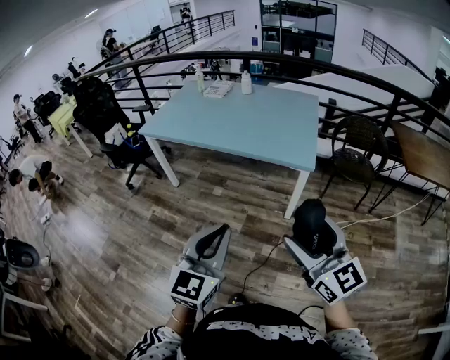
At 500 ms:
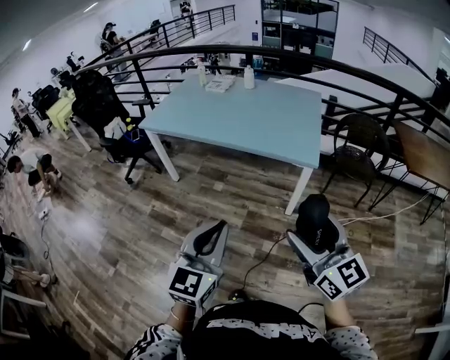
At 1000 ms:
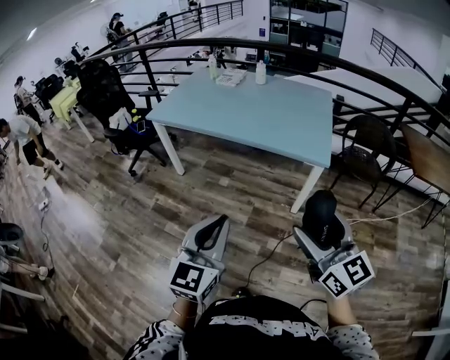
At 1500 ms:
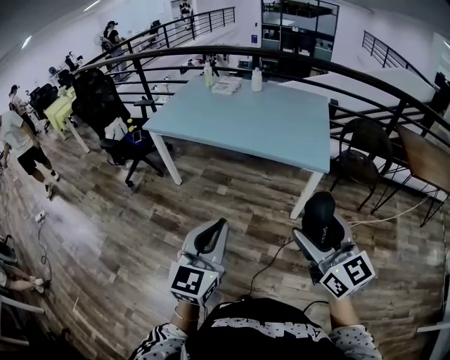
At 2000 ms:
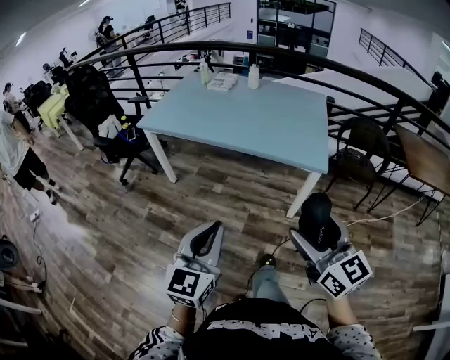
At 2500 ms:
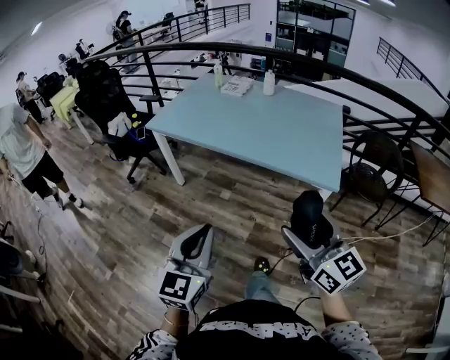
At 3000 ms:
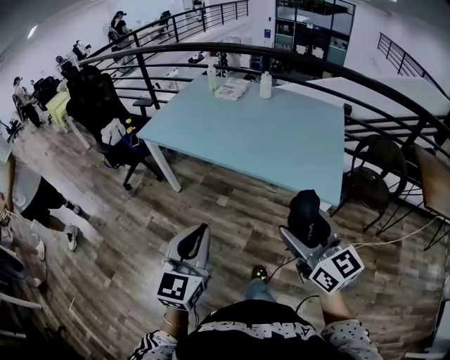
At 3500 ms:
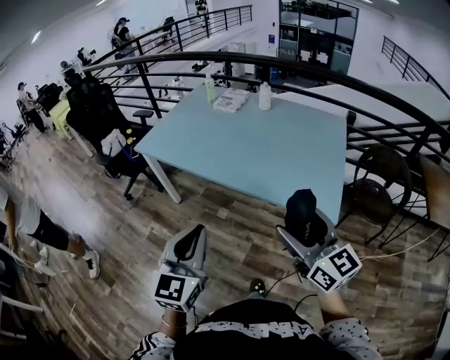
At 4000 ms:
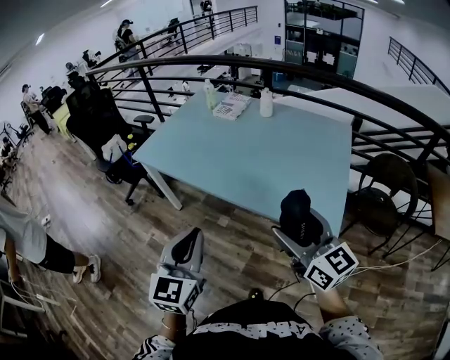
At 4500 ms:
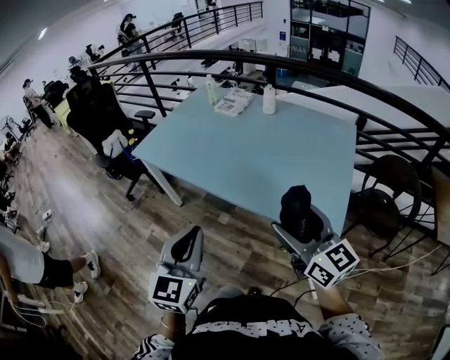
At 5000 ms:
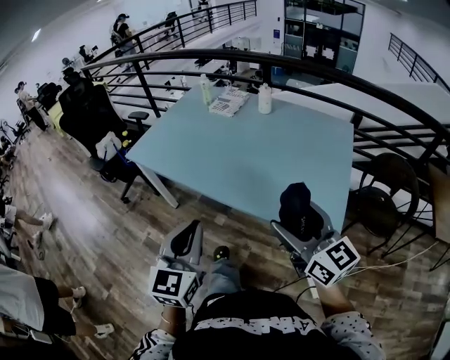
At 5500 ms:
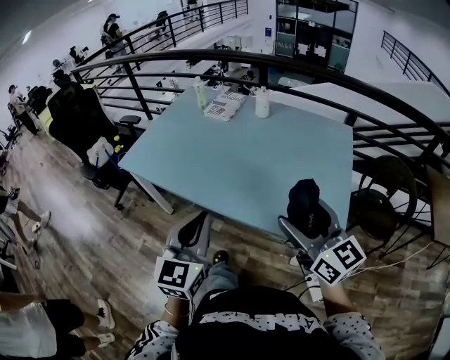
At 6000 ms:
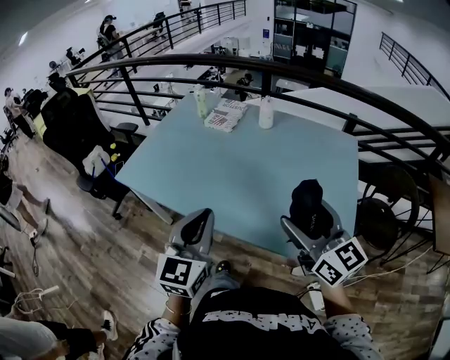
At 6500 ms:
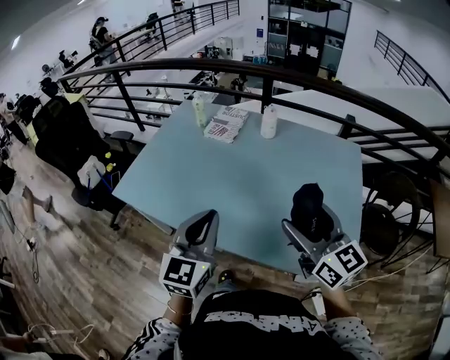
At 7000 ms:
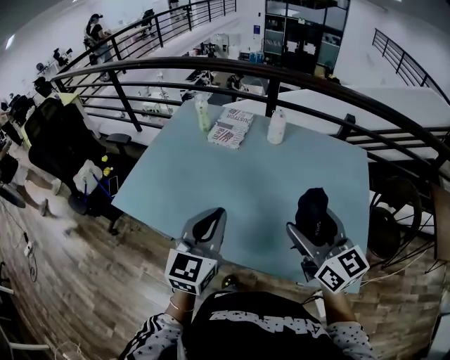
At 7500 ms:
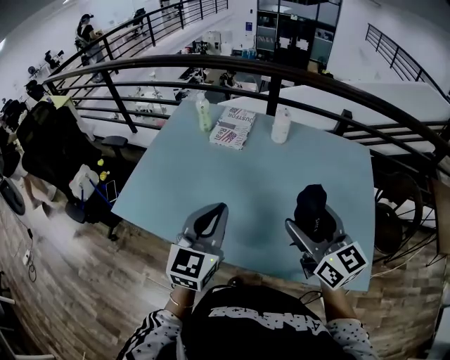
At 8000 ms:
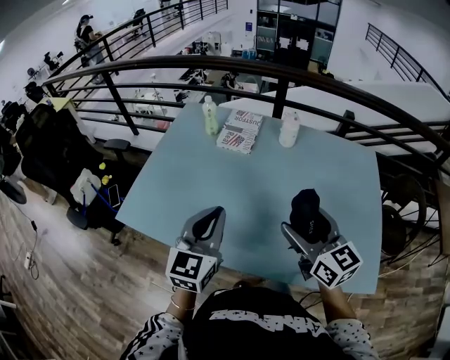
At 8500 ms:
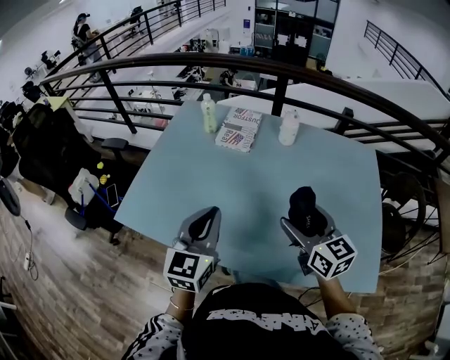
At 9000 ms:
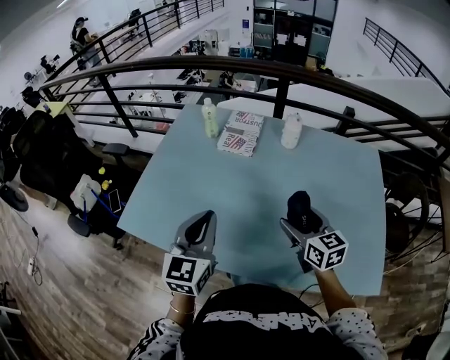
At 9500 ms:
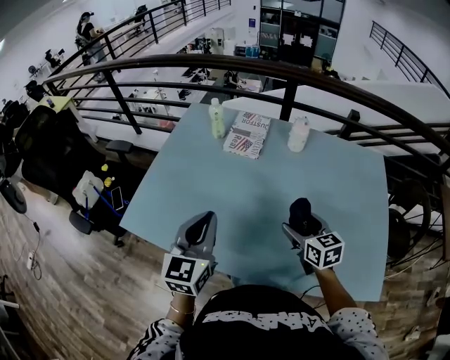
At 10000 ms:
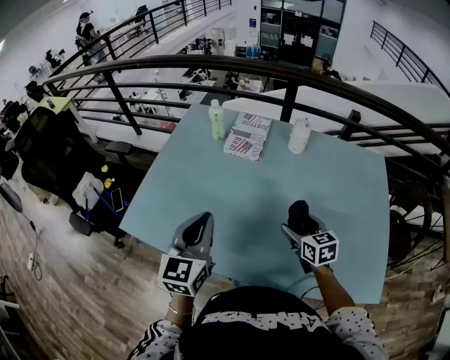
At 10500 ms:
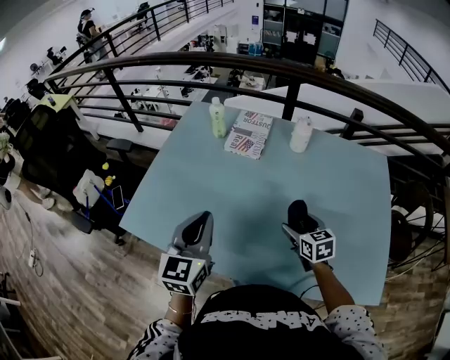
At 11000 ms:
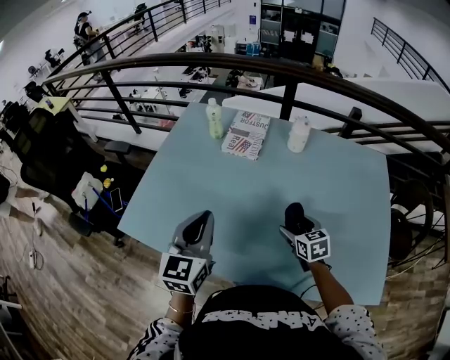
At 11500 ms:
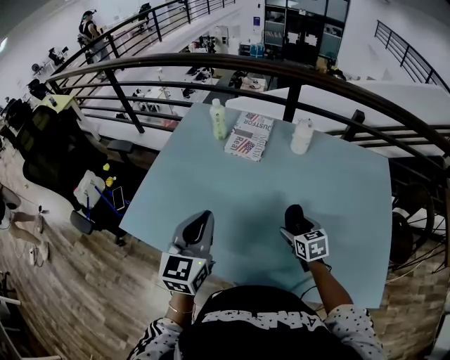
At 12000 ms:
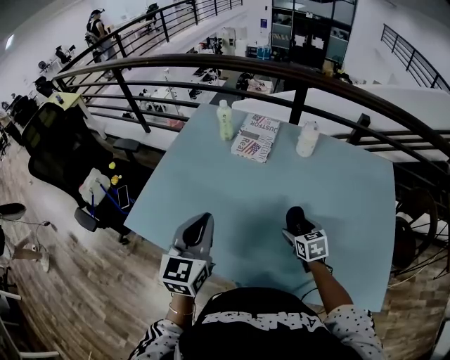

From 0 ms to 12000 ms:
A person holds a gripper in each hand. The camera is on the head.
From 0 ms to 2000 ms: The two grippers go roughly 15 cm to the left and forward.
From 2000 ms to 4000 ms: Both grippers travel together forward, roughly 35 cm.
From 4000 ms to 6000 ms: Both grippers move forward, approximately 25 cm.
From 6000 ms to 8000 ms: The two grippers go roughly 30 cm forward and to the left.
From 8000 ms to 10000 ms: The right gripper goes roughly 20 cm downward and forward, and turns by some 30 degrees. Meanwhile the left gripper goes approximately 10 cm to the left and forward.
From 10000 ms to 12000 ms: The right gripper heads downward, covering approximately 10 cm.

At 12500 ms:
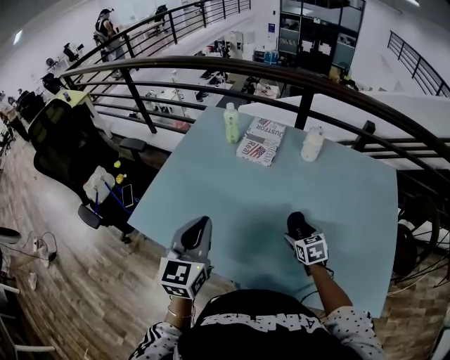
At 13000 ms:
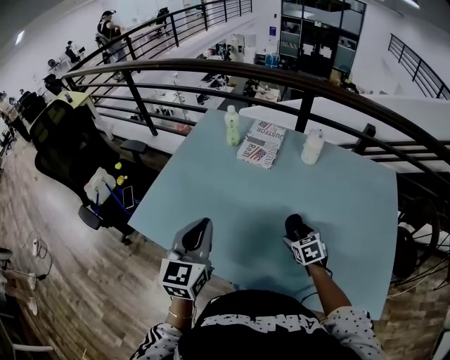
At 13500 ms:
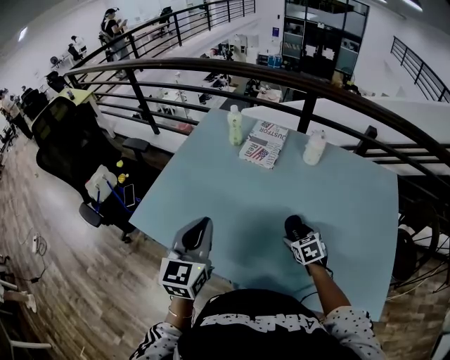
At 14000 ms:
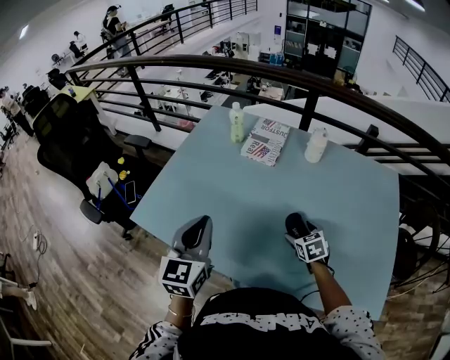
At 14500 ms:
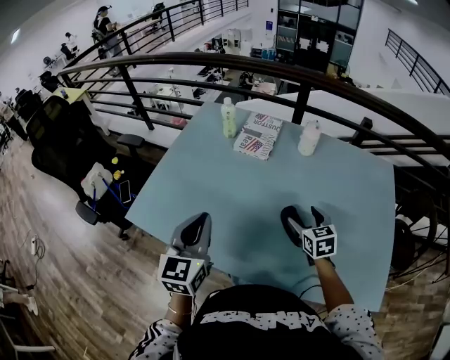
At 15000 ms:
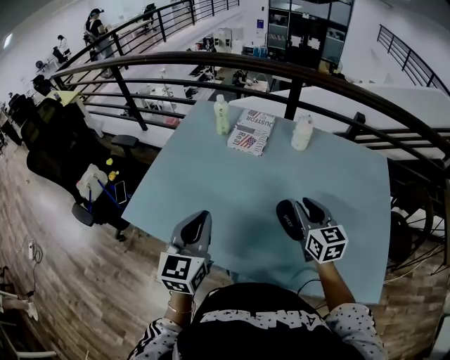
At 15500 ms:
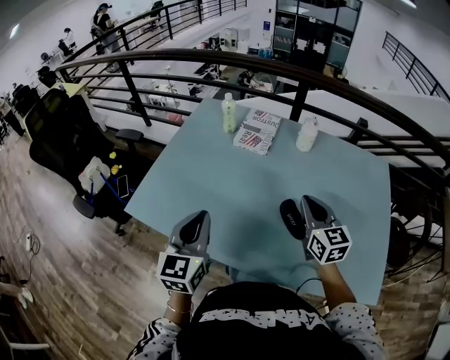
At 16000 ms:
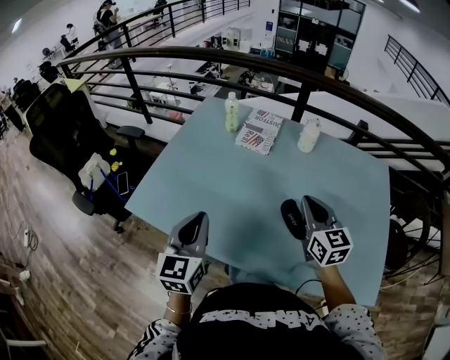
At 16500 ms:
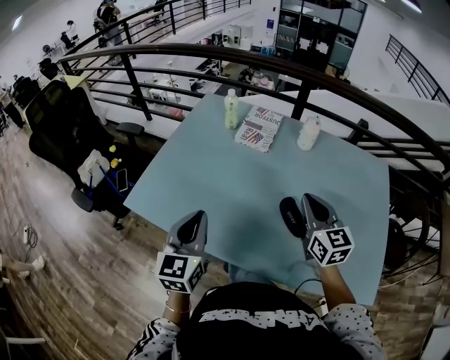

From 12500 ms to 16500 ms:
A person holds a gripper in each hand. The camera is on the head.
From 12500 ms to 14500 ms: The right gripper heads upward, covering roughly 10 cm.
From 14500 ms to 16500 ms: The right gripper heads upward, covering roughly 15 cm, changes its angle by approximately 20 degrees, and closes up.

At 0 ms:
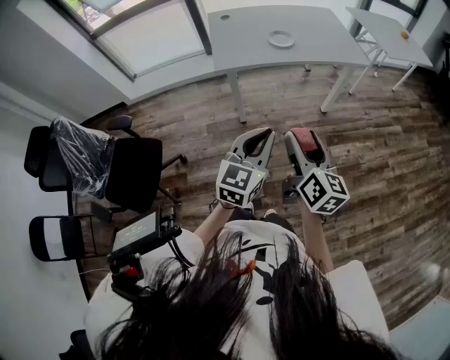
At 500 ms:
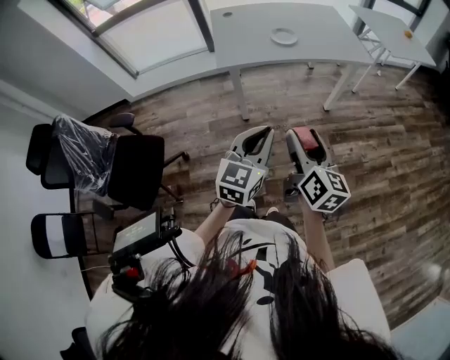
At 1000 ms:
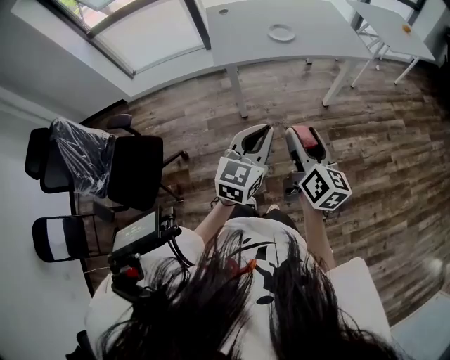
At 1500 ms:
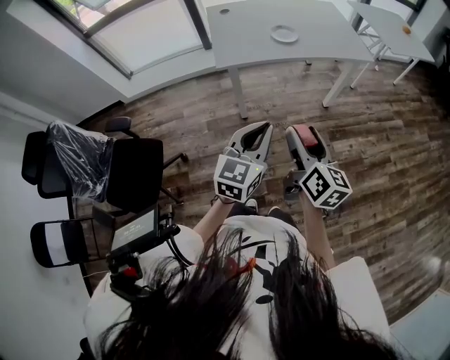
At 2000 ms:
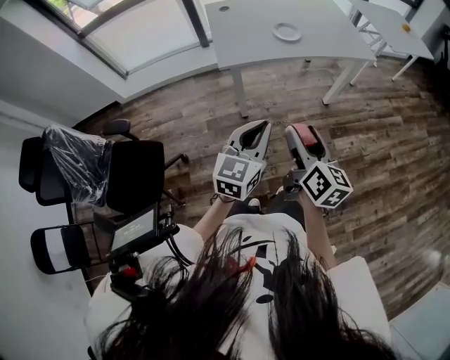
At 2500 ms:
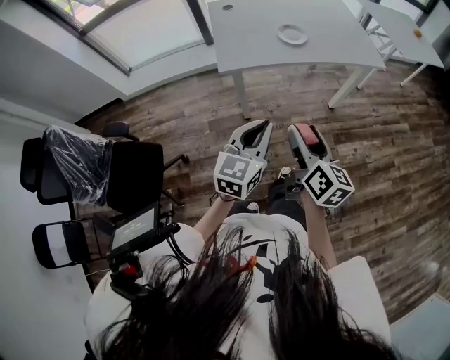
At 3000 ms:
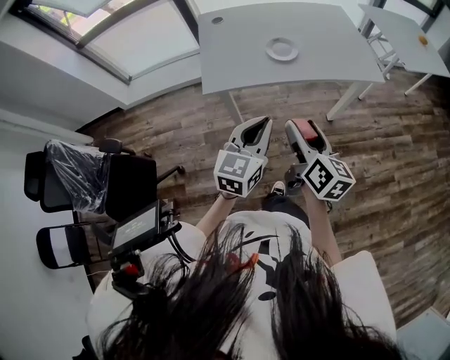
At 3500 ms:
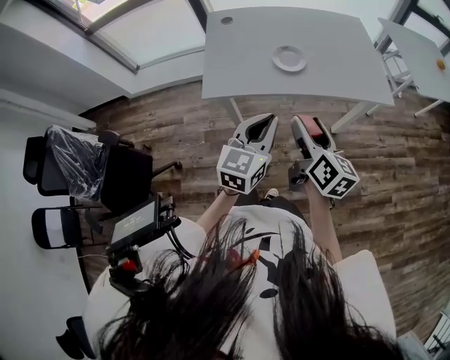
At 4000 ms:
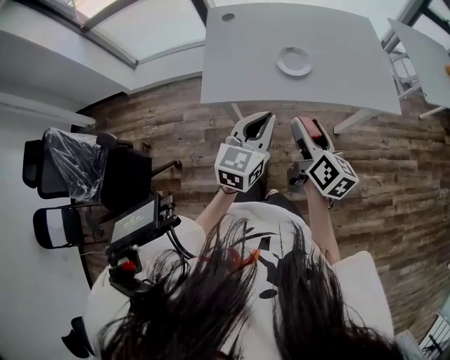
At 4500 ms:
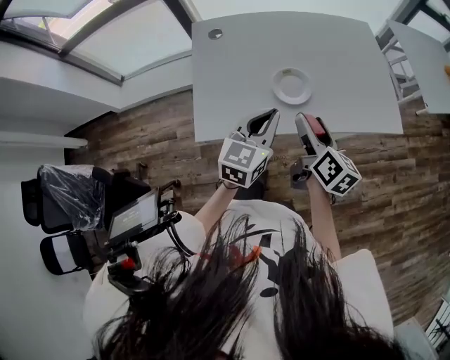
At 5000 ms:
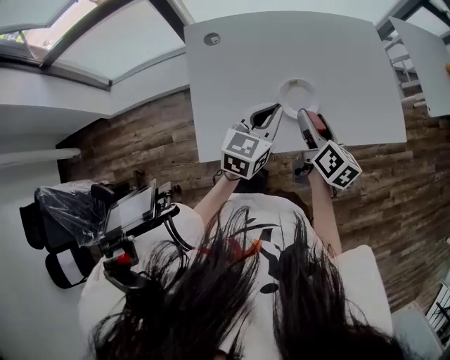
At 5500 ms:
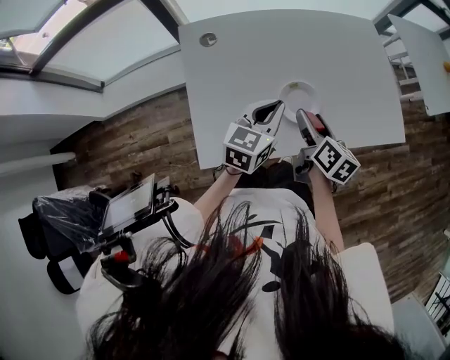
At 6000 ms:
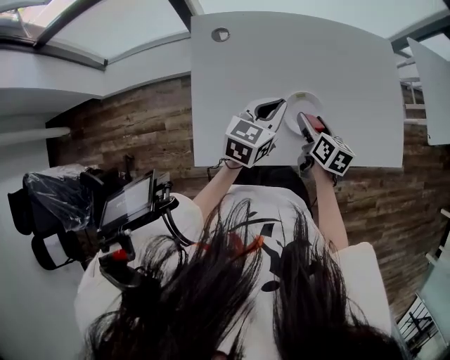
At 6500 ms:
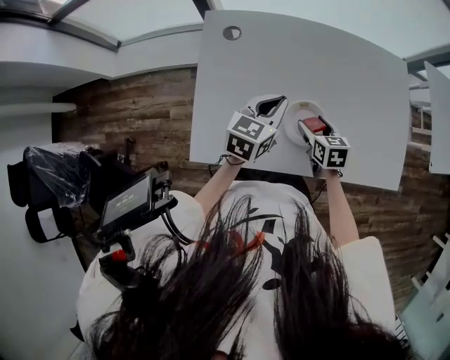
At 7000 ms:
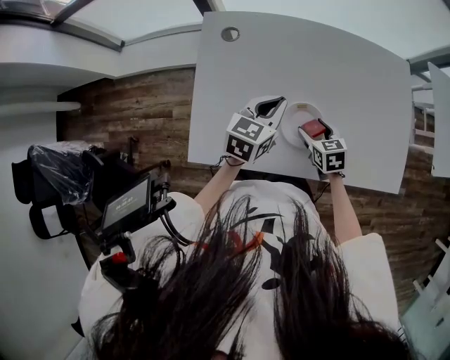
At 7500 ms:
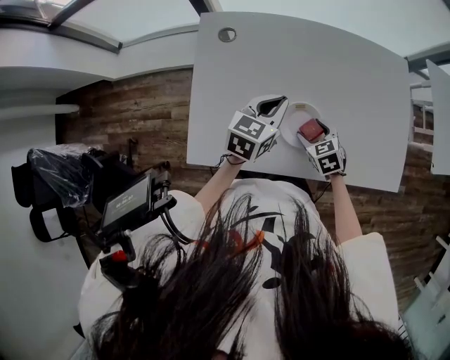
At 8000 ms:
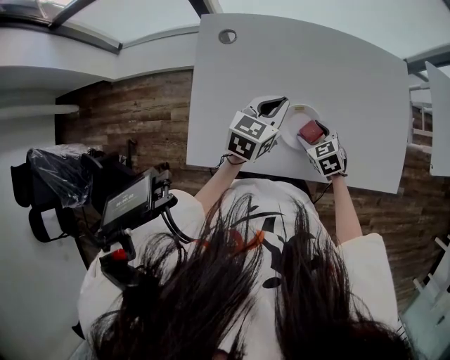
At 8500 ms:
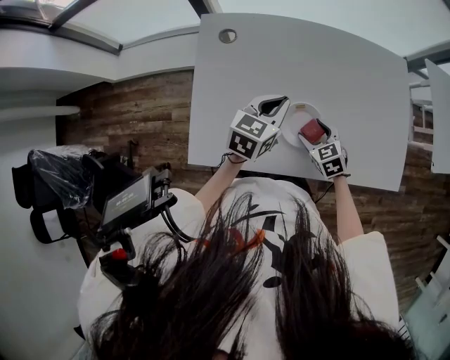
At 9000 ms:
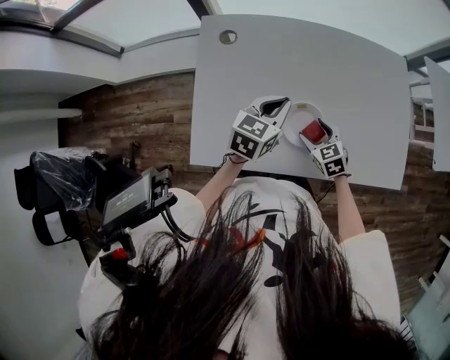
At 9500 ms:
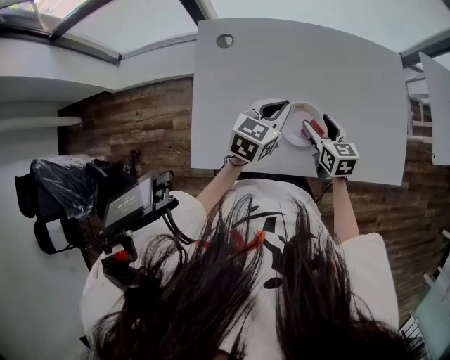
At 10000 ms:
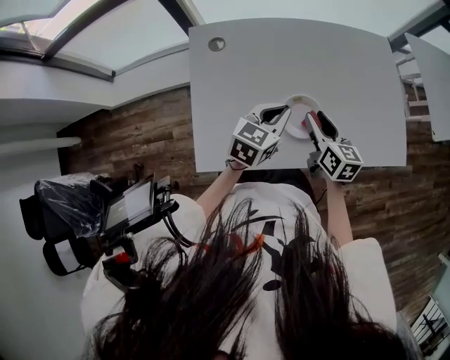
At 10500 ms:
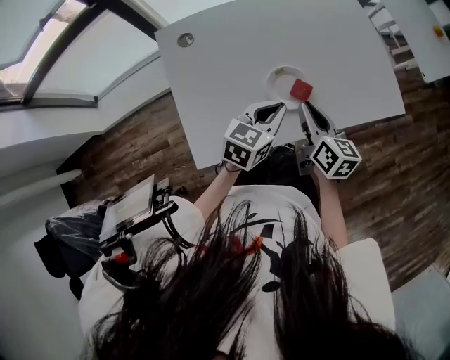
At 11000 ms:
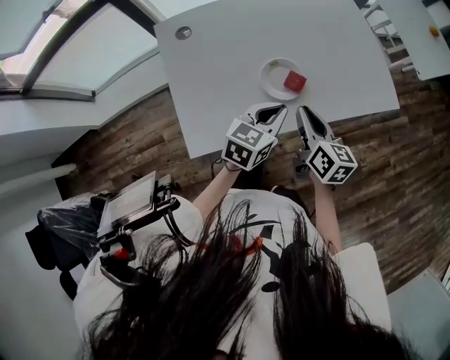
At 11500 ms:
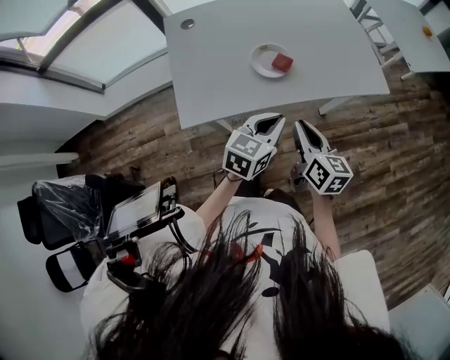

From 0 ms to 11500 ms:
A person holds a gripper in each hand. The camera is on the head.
From 0 ms to 2000 ms: The left gripper heads to the left and downward, covering roughly 10 cm. The right gripper travels downward and to the left by approximately 5 cm.
From 2000 ms to 4000 ms: The two grippers go some 35 cm forward.
From 4000 ms to 6000 ms: The right gripper swings forward and backward, about 15 cm each way, with 2 reversals; the left gripper moves forward and backward over some 15 cm, changing direction 2 times.
From 6000 ms to 7500 ms: The right gripper shifts roughly 5 cm downward, and twists about 50 degrees counterclockwise, seen from behind.
From 7500 ms to 9500 ms: The right gripper moves upward, approximately 5 cm, and changes its angle by roughly 30 degrees.
From 9500 ms to 11500 ms: The left gripper shifts roughly 20 cm forward, to the left and downward, while the right gripper is displaced to the left and forward by about 20 cm, and closes its fingers.
